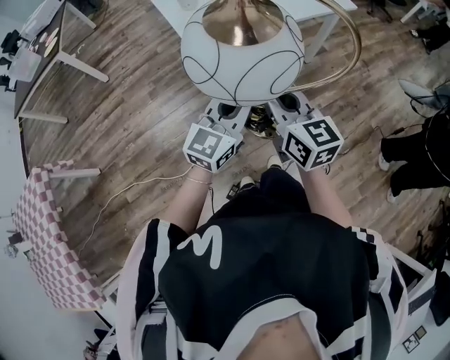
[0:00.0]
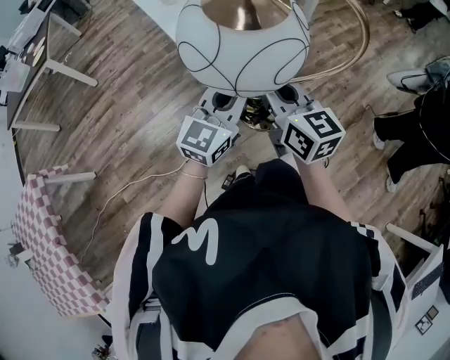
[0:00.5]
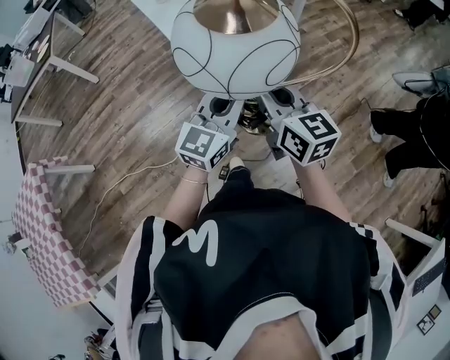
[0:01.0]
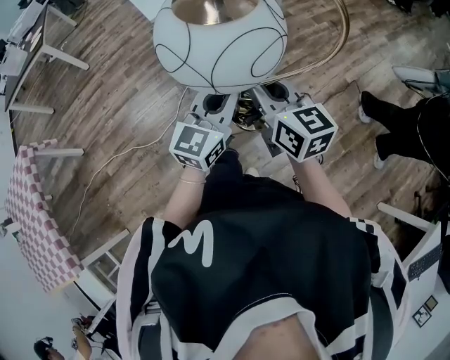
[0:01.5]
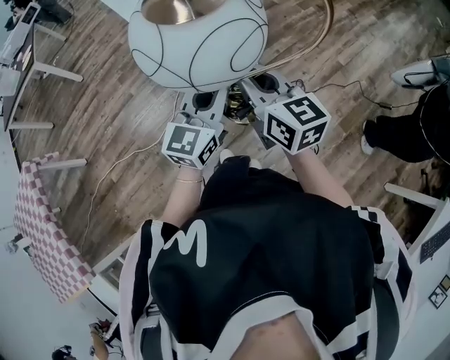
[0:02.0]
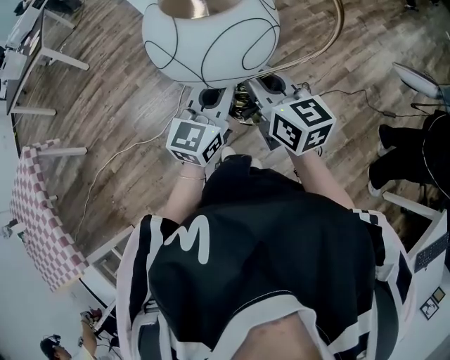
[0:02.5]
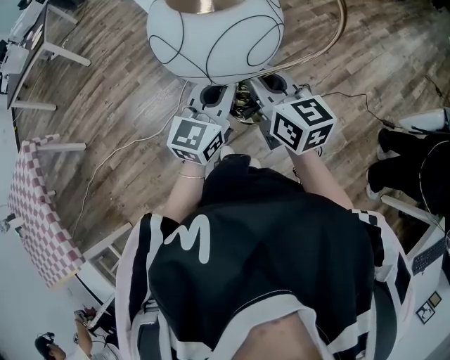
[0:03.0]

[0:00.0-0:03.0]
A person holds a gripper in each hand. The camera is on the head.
0:00.0 to 0:01.5: Both grippers travel together backward and to the right, about 30 cm.
0:01.5 to 0:03.0: There are only small adjustments of the grippers.

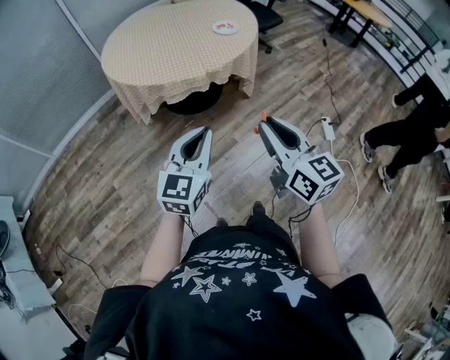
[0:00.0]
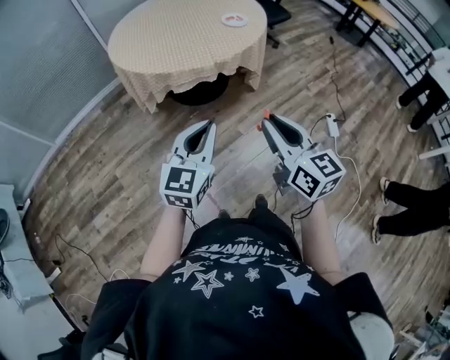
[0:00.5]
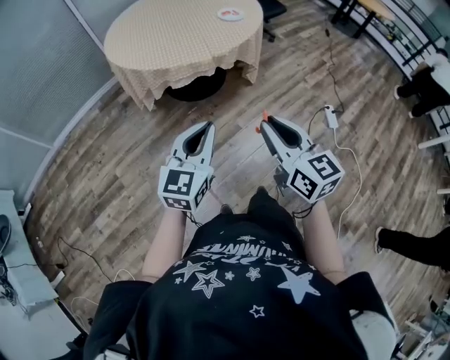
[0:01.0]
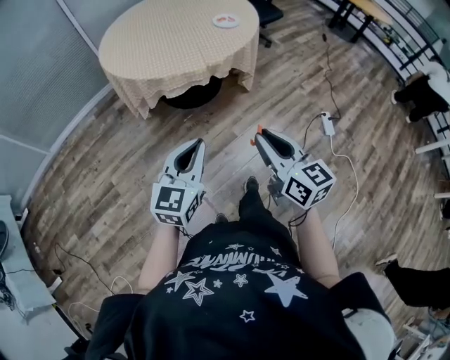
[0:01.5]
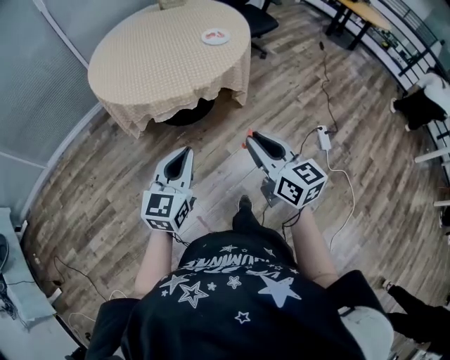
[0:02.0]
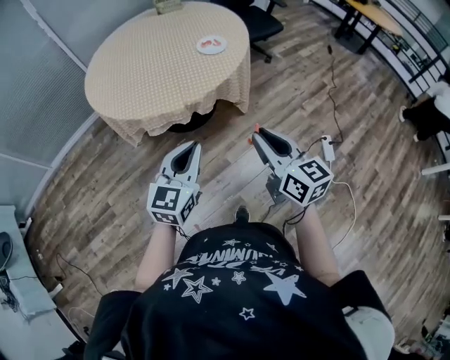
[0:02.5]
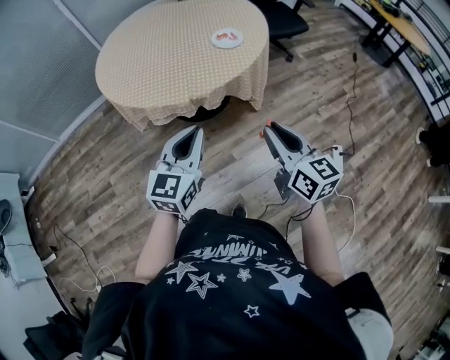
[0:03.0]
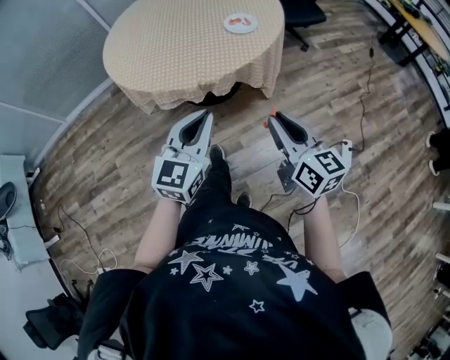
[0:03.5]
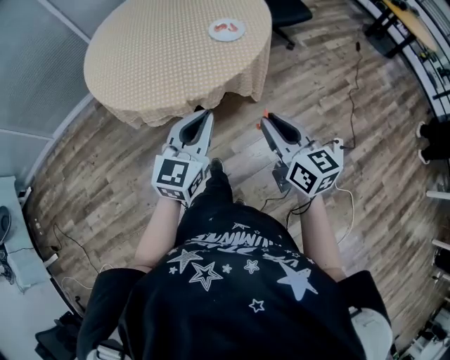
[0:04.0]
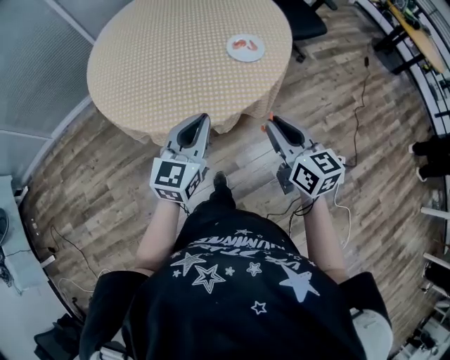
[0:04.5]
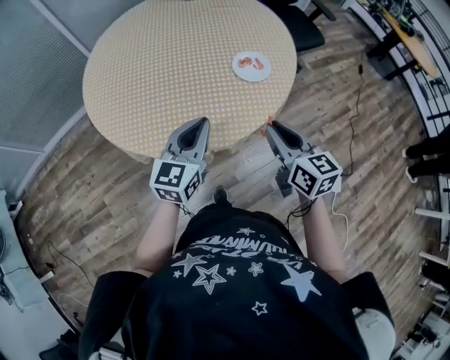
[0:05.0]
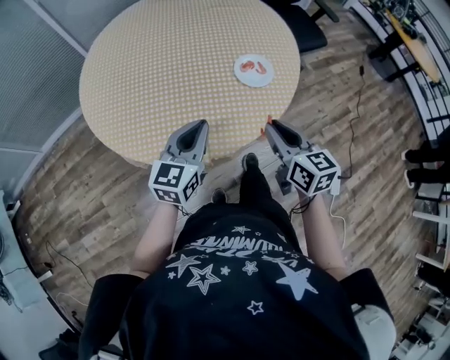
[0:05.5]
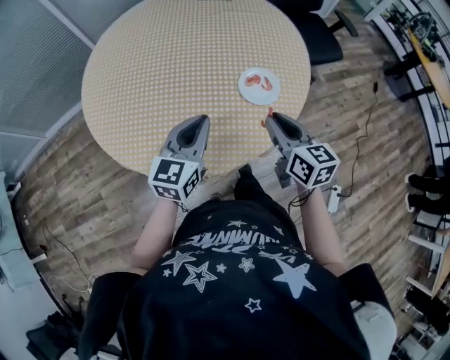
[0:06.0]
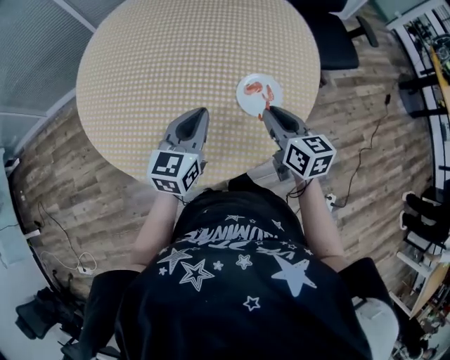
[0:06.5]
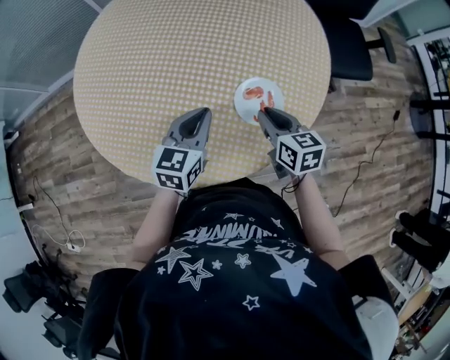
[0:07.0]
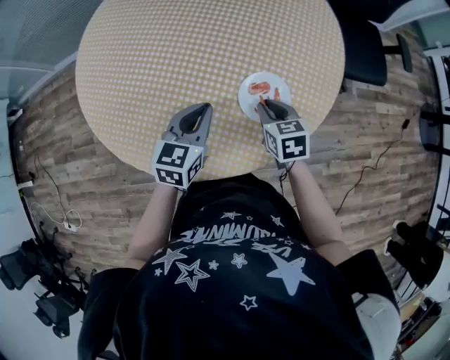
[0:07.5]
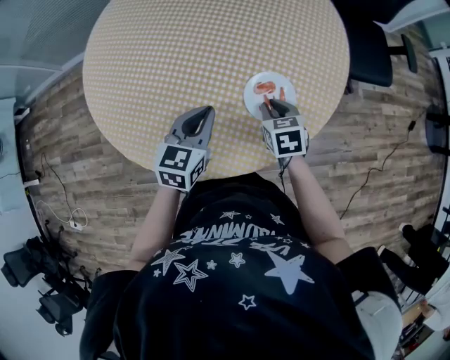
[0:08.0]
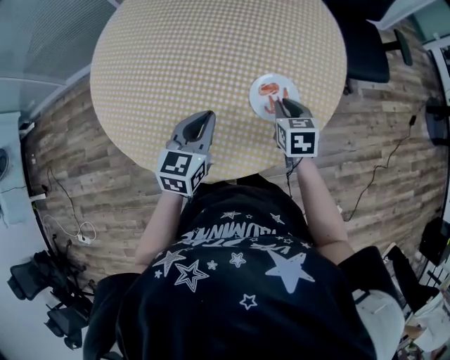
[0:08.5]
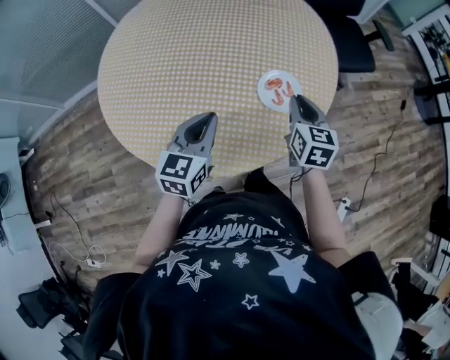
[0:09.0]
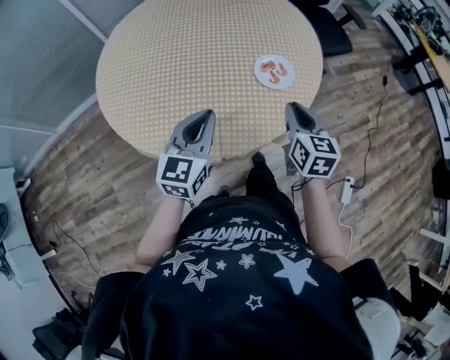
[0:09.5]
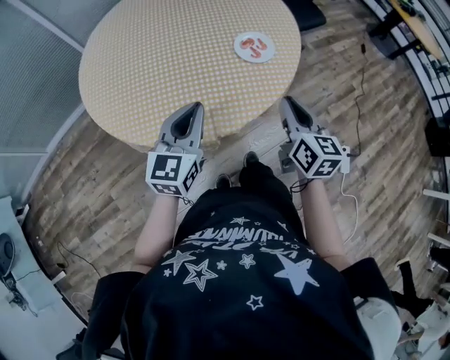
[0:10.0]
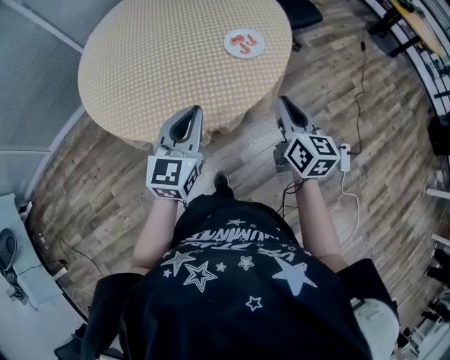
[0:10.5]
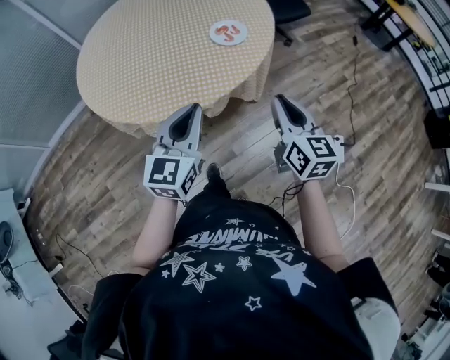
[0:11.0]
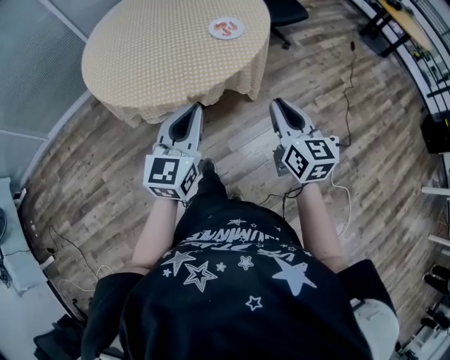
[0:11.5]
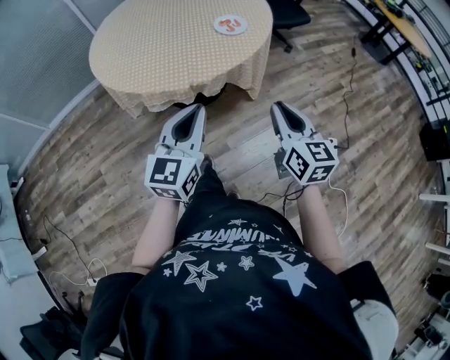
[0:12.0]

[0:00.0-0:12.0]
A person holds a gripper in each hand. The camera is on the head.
0:00.0 to 0:02.0: The right gripper is displaced forward and downward by about 10 cm. The left gripper travels forward by about 5 cm.
0:02.0 to 0:04.0: The two grippers go some 25 cm forward and to the right.
0:04.0 to 0:06.0: The grippers both shift forward by roughly 30 cm.
0:06.0 to 0:08.0: The right gripper goes about 20 cm downward and forward, and points its fingers approximately 30 degrees further downward, while the left gripper shifts some 15 cm downward, forward and to the right, and swivels some 20 degrees.
0:08.0 to 0:10.0: The right gripper ends up about 30 cm from where it was, and tilts its fingers roughly 30 degrees upward. The left gripper shifts by about 25 cm, and swivels roughly 30 degrees.
0:10.0 to 0:12.0: The right gripper goes about 25 cm backward. The left gripper is displaced backward and to the right by about 30 cm.

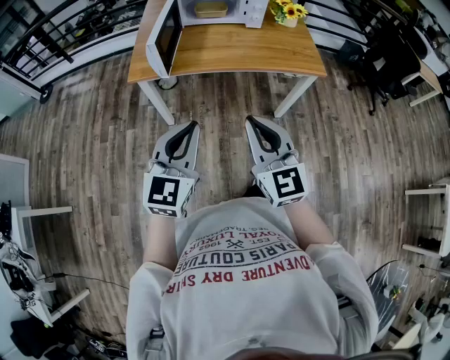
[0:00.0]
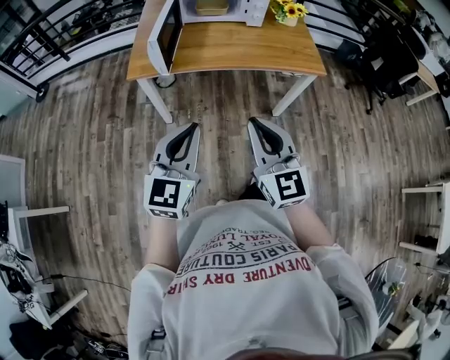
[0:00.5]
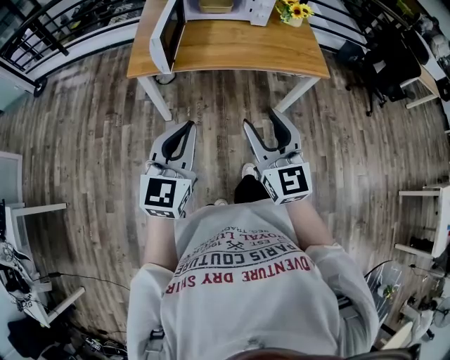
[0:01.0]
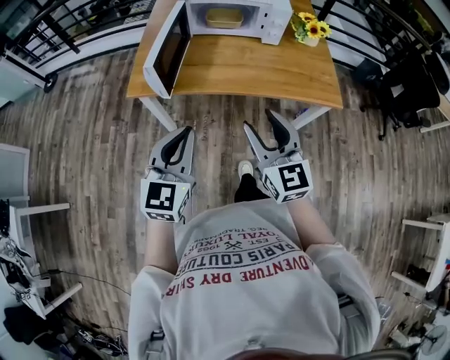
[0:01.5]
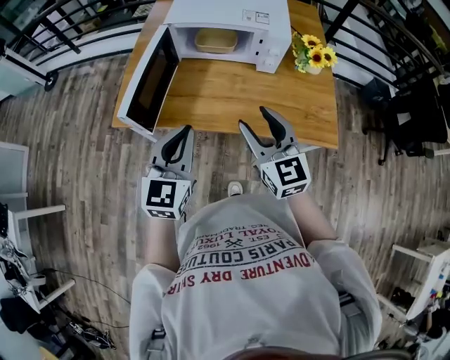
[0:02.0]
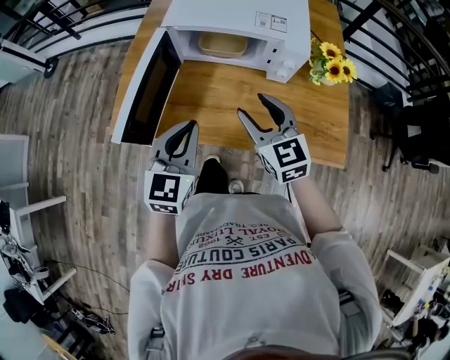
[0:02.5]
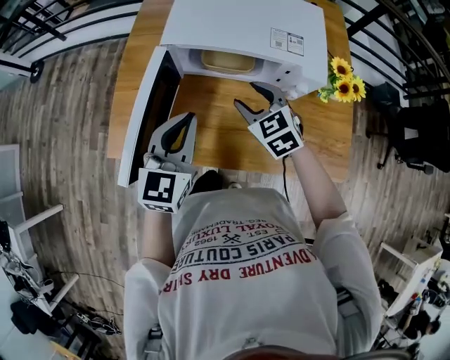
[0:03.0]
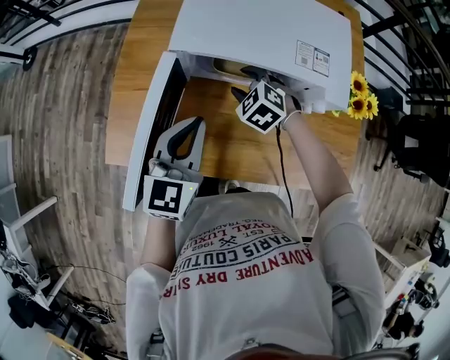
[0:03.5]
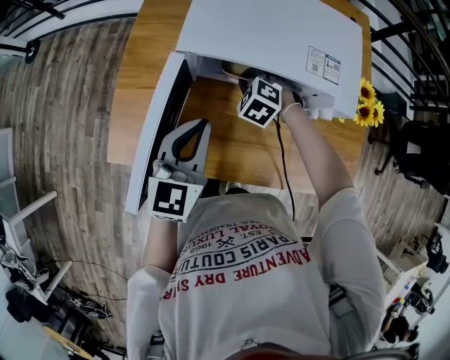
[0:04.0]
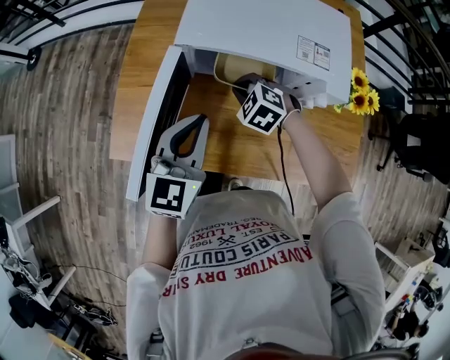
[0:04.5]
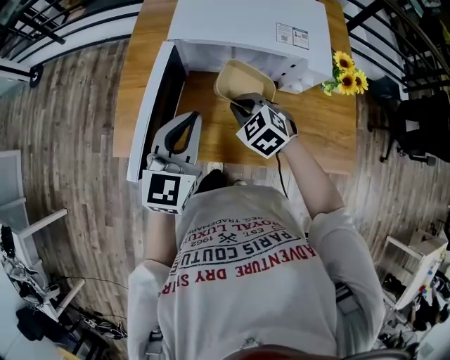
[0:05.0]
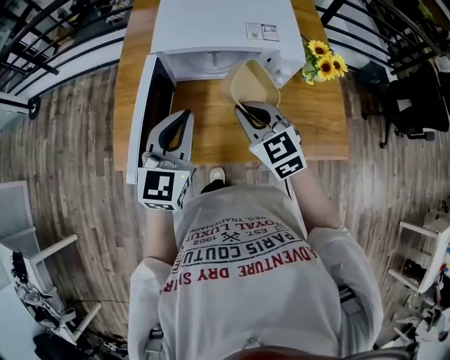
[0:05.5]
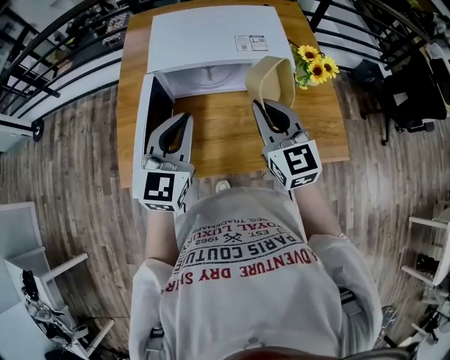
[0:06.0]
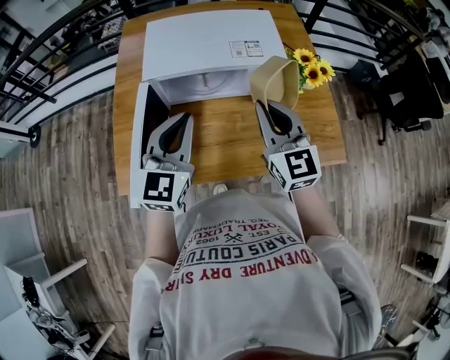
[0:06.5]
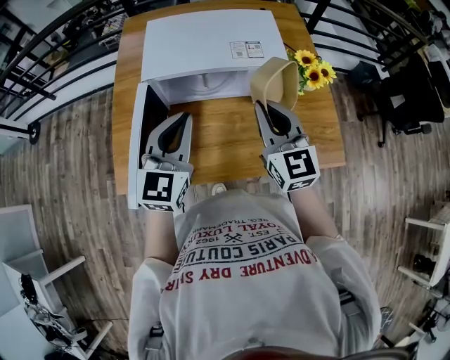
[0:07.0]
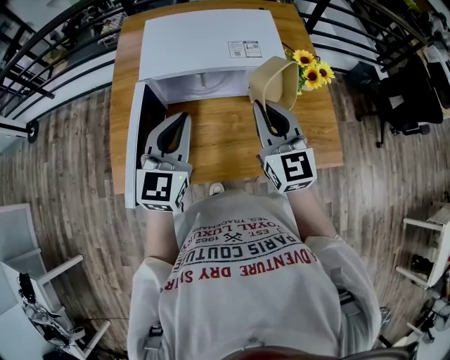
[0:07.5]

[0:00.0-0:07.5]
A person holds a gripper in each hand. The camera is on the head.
0:00.0 to 0:02.0: The two grippers go roughly 30 cm forward. The right gripper opens up.
0:02.0 to 0:04.0: The right gripper goes about 40 cm forward and downward, points its fingers approximately 50 degrees further downward, and closes, while the left gripper moves forward, some 20 cm.
0:04.0 to 0:05.5: The left gripper goes about 10 cm upward and backward. Meanwhile the right gripper is displaced upward and backward by approximately 25 cm, and tilts its fingers approximately 40 degrees upward.
0:05.5 to 0:07.5: The left gripper changes place by some 5 cm. Meanwhile the right gripper moves to the right and upward, about 10 cm, and changes its angle by roughly 30 degrees.

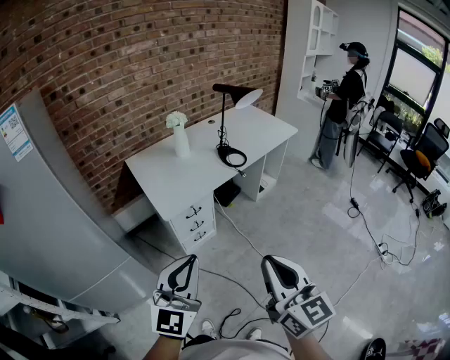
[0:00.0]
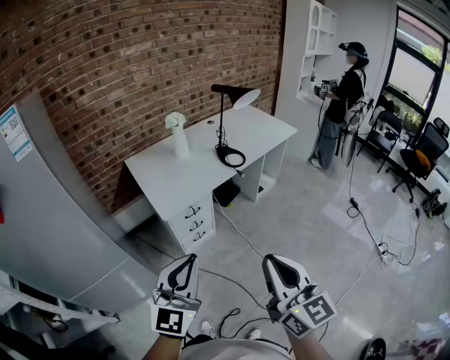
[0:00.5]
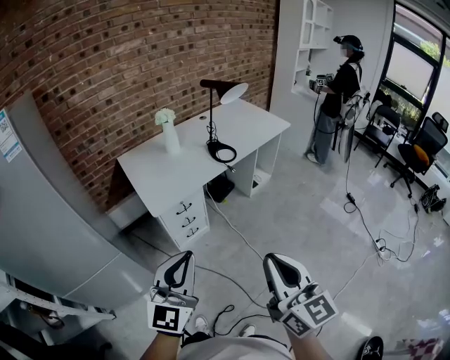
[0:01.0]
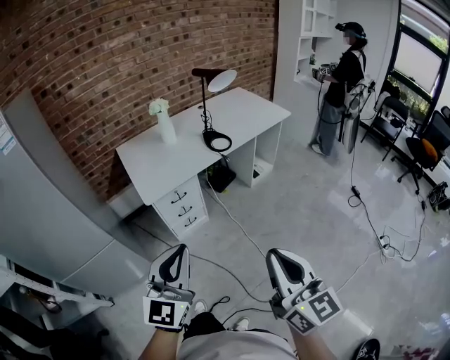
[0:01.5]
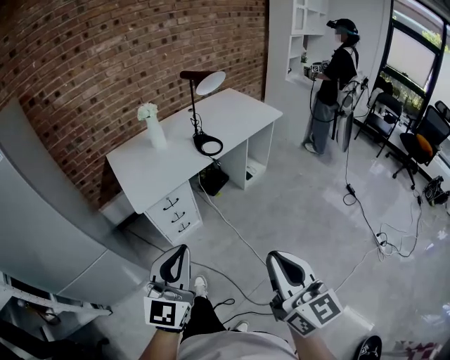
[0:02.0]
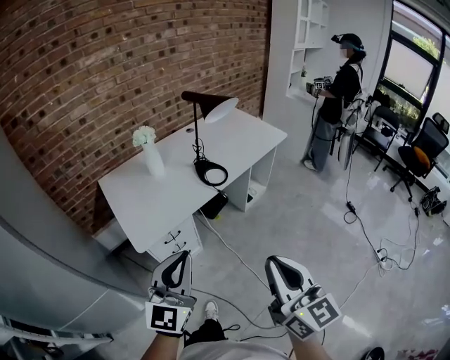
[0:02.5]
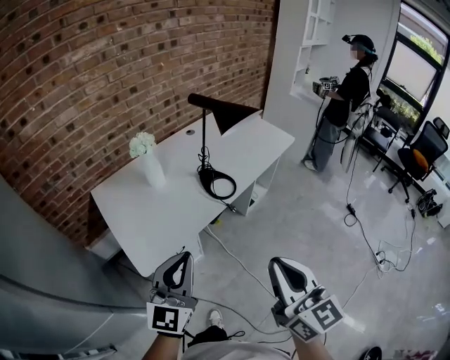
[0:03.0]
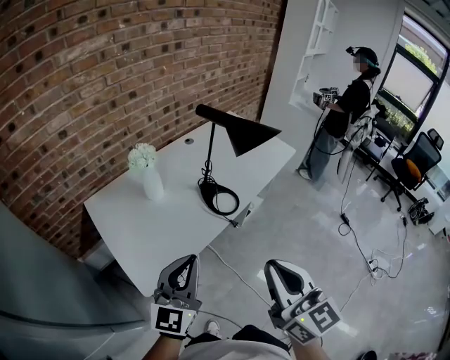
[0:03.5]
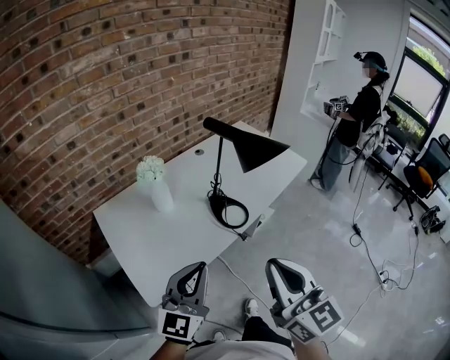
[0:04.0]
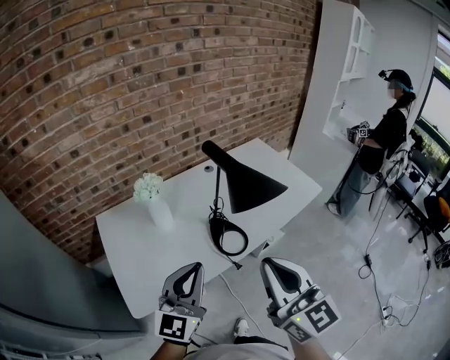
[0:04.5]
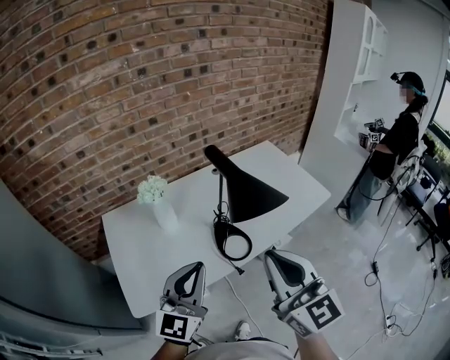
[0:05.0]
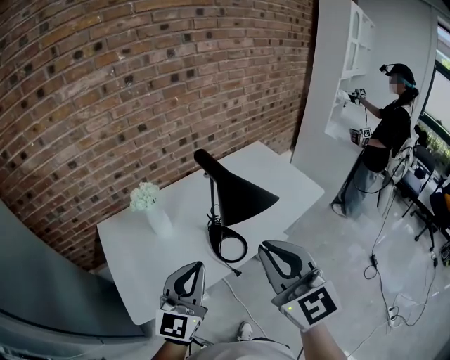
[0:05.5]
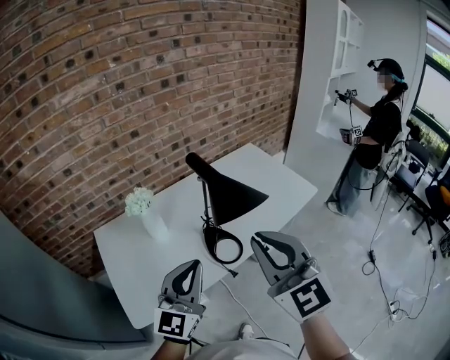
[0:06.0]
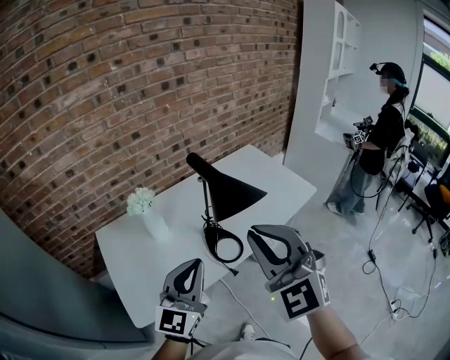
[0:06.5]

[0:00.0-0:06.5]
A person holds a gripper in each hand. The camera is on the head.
0:00.0 to 0:02.0: Both grippers travel together to the right, approximately 15 cm.
0:02.0 to 0:04.5: The two grippers travel together, forward, about 50 cm.
0:04.5 to 0:06.5: The right gripper shifts about 5 cm forward, and rotates around the line of its fingers by approximately 40 degrees, counterclockwise from behind.
